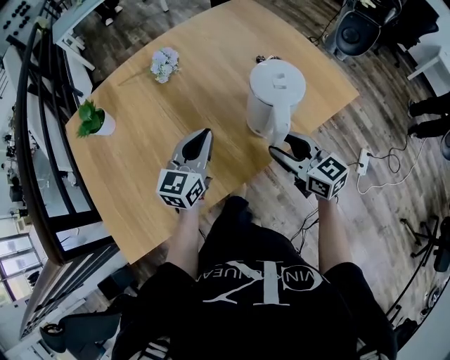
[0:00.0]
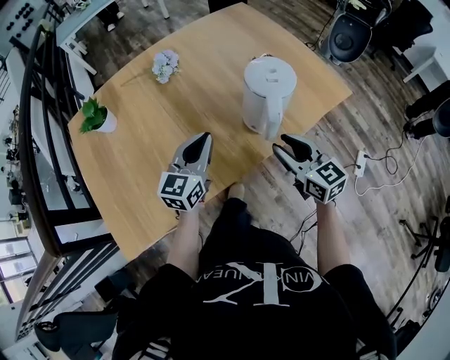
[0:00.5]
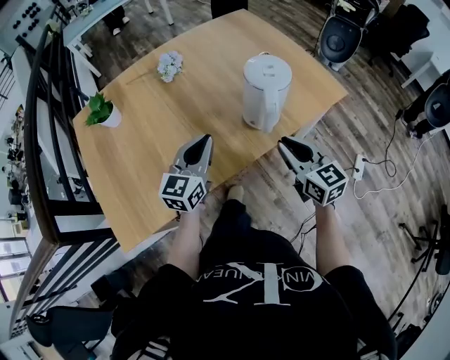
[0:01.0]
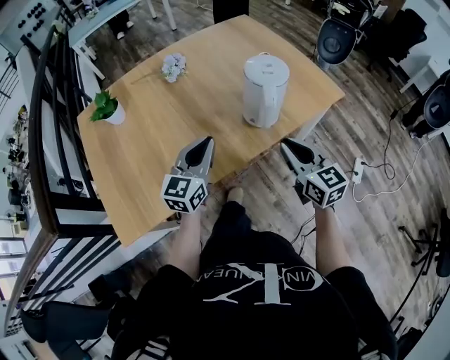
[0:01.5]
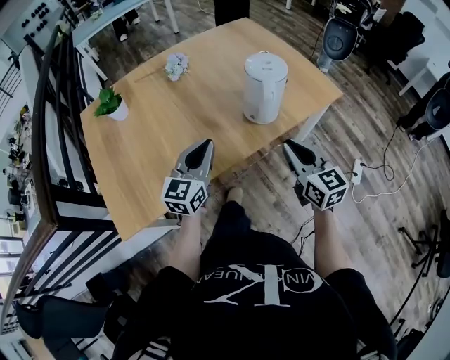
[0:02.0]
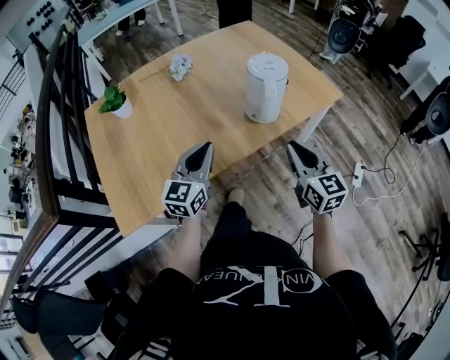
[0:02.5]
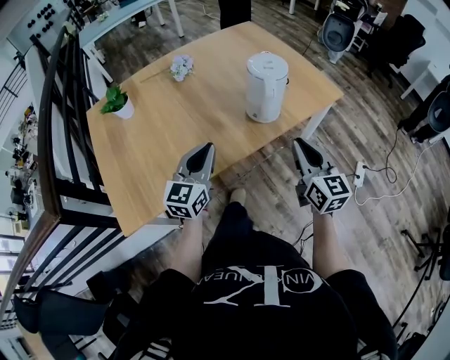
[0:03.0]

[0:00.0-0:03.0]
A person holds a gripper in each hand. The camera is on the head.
0:00.0 to 0:01.5: Both grippers travel together backward, about 10 cm. The right gripper closes up.
0:01.5 to 0:03.0: The right gripper changes place by some 5 cm. Meanwhile the left gripper shifts approximately 5 cm backward.

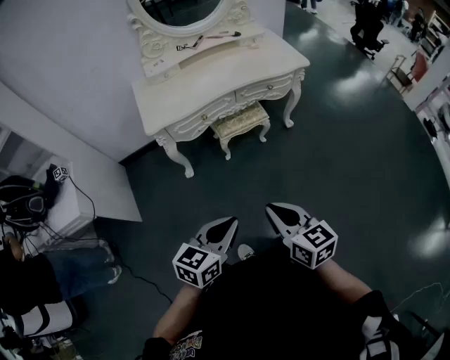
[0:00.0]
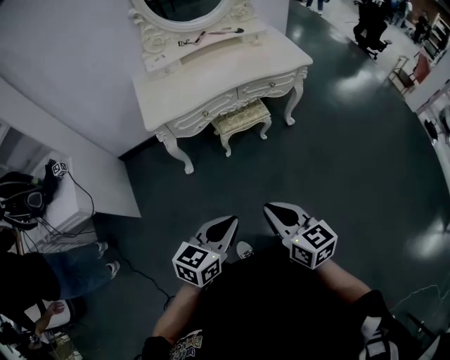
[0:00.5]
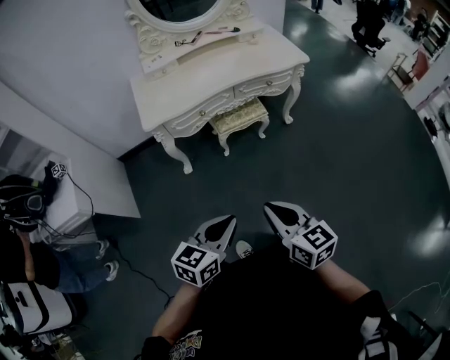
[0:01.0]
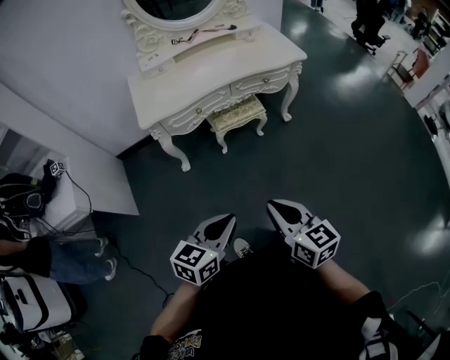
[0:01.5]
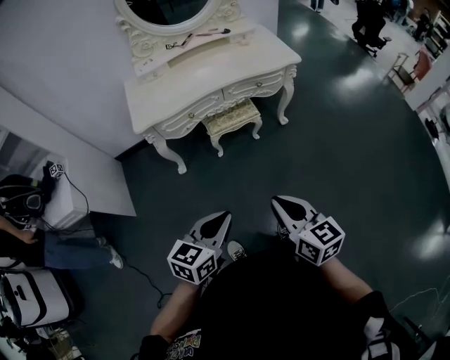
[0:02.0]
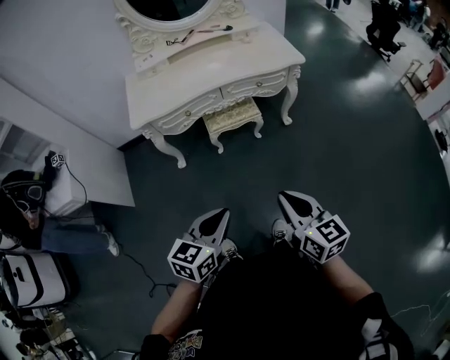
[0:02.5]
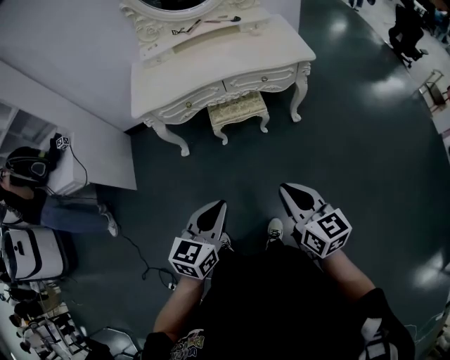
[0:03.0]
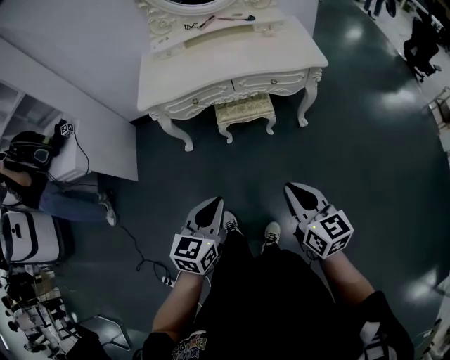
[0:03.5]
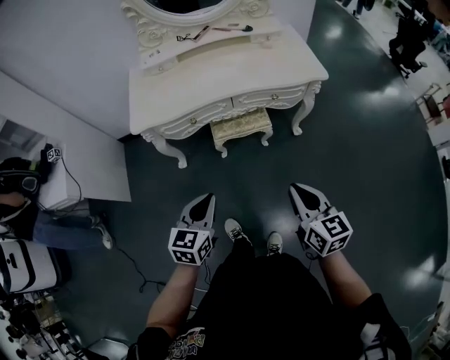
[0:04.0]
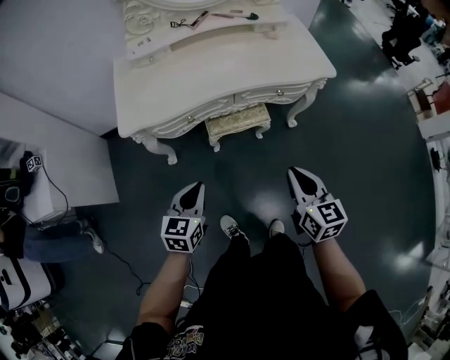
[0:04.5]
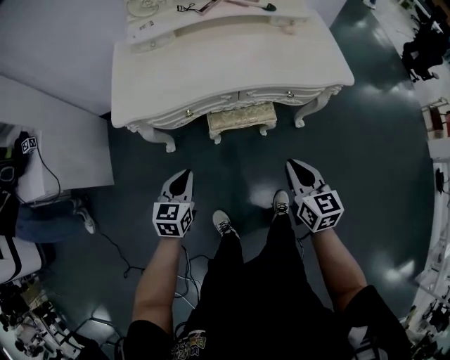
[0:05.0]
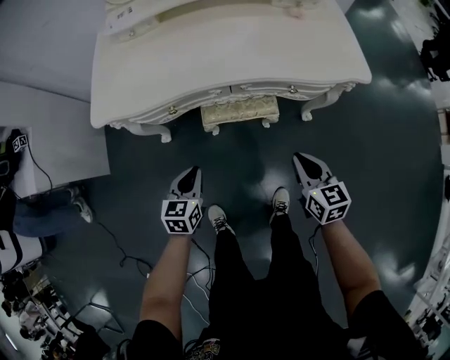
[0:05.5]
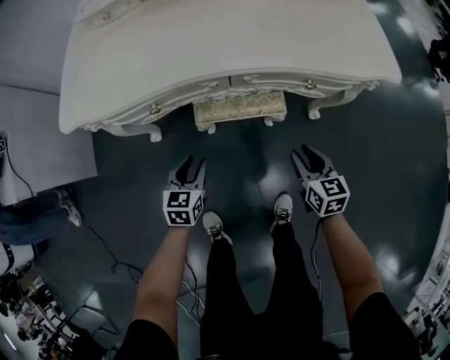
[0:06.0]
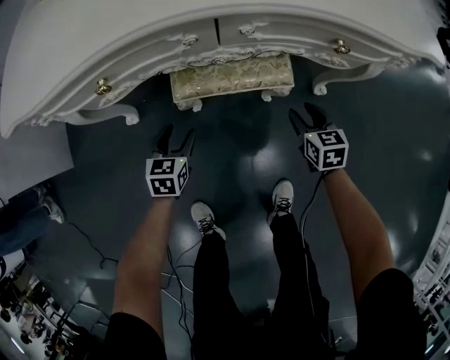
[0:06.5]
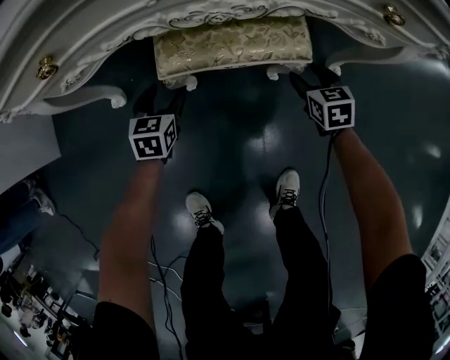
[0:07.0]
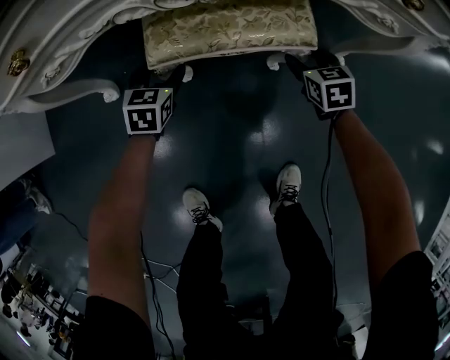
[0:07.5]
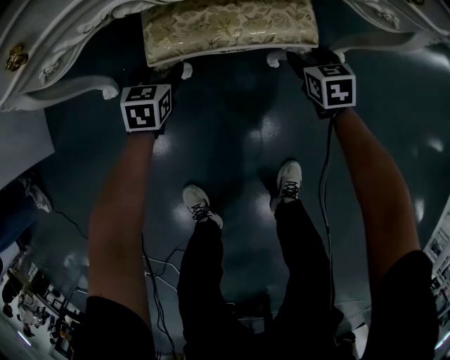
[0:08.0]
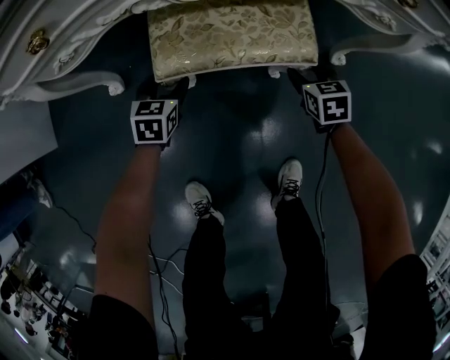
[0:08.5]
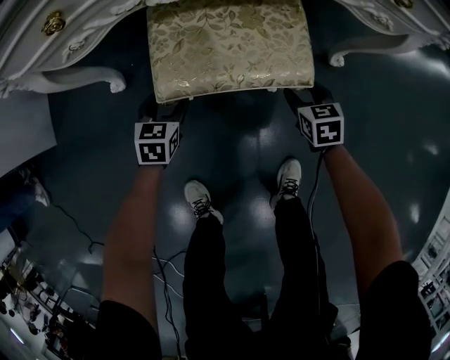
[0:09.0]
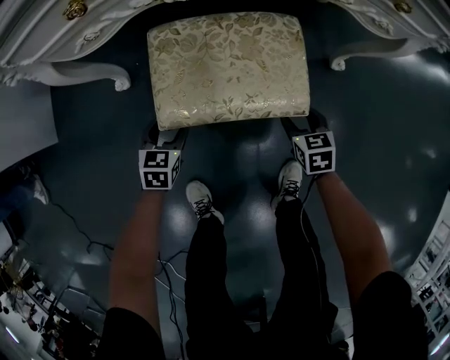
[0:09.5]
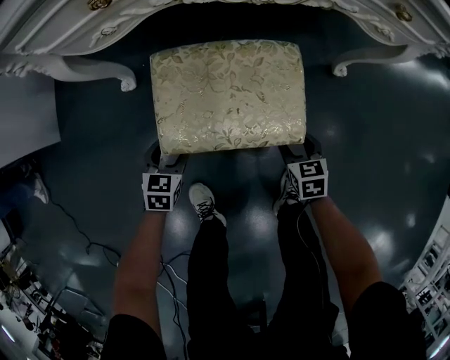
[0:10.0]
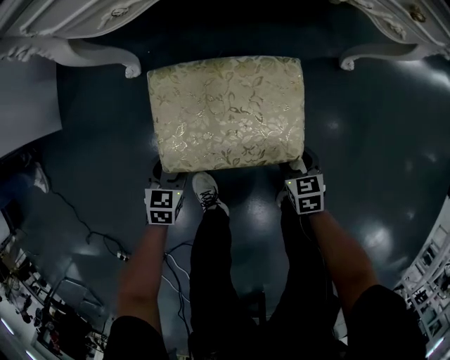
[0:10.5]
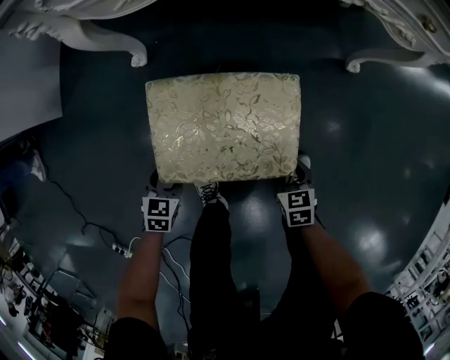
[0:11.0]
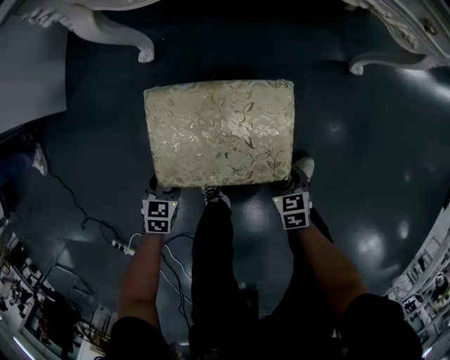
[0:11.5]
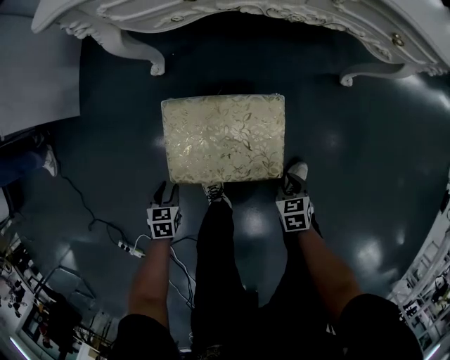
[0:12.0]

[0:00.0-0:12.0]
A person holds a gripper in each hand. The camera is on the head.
0:00.0 to 0:02.0: Both grippers travel together to the right, about 10 cm.
0:02.0 to 0:04.0: The left gripper heads forward, covering some 20 cm, and swivels approximately 20 degrees; the right gripper heads forward and to the right, covering roughly 25 cm.
0:04.0 to 0:06.0: The two grippers go about 50 cm downward and forward. The right gripper opens its fingers. The left gripper opens.
0:06.0 to 0:08.0: The two grippers go approximately 35 cm downward and forward. The left gripper opens. Meanwhile the right gripper opens up.
0:08.0 to 0:10.0: The grippers make only small movements.
0:10.0 to 0:12.0: The right gripper goes approximately 5 cm upward, and closes. Meanwhile the left gripper ends up roughly 5 cm from where it was, turns by approximately 20 degrees, and closes.

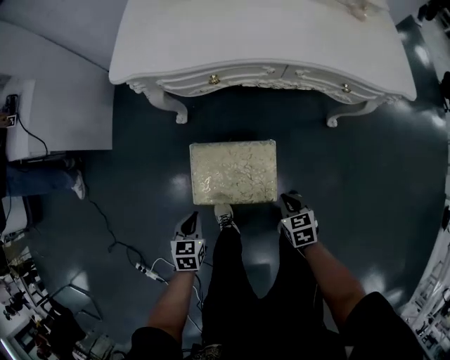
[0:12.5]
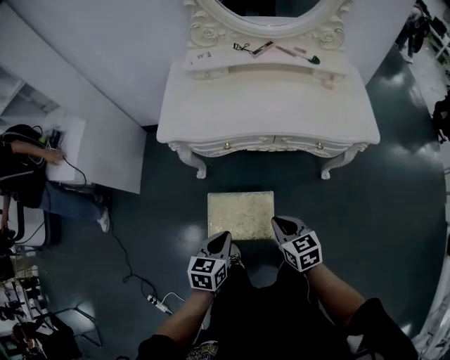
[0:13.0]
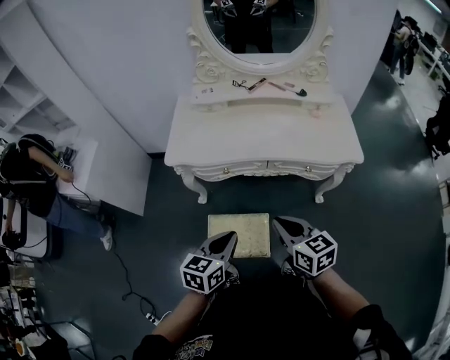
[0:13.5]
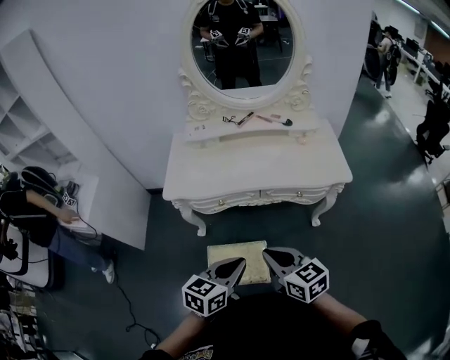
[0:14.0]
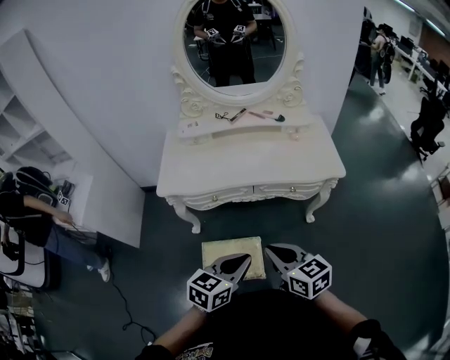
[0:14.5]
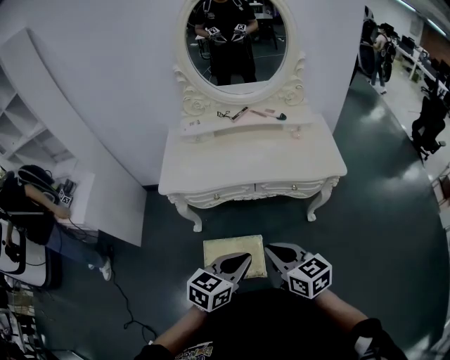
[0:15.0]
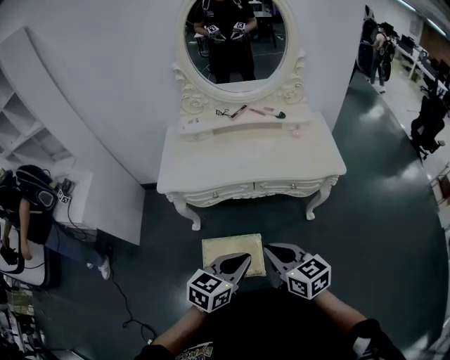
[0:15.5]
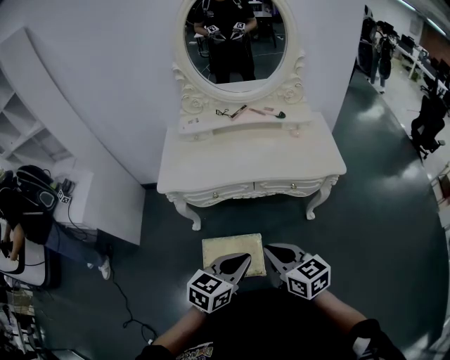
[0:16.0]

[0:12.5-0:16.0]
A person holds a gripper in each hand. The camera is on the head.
0:12.5 to 0:14.5: The left gripper goes some 50 cm upward and to the right, and angles its fingers upward, by approximately 30 degrees. The right gripper moves upward, approximately 50 cm, and tips its fingers upward by roughly 40 degrees.
0:14.5 to 0:16.0: Both grippers stay about where they are.

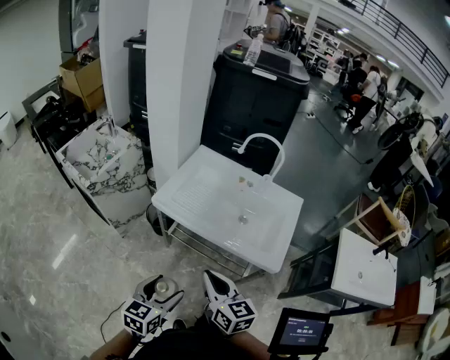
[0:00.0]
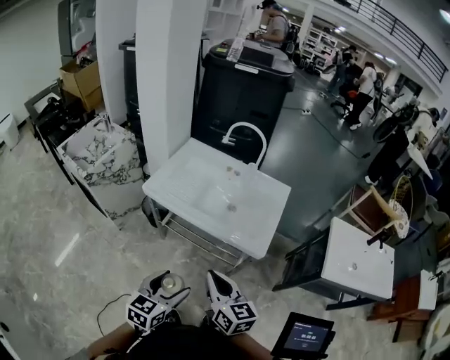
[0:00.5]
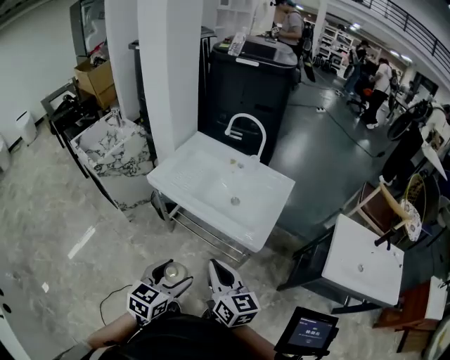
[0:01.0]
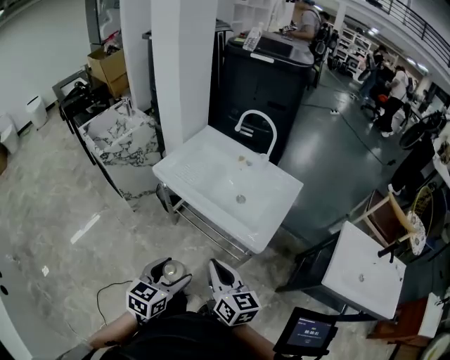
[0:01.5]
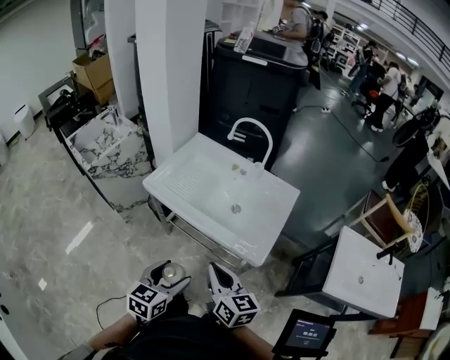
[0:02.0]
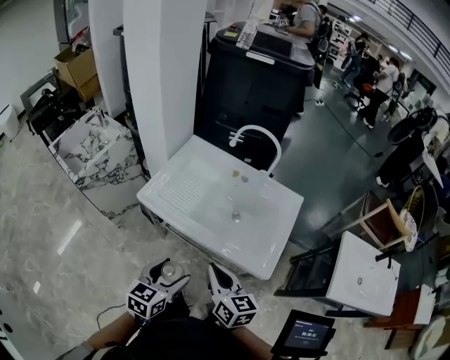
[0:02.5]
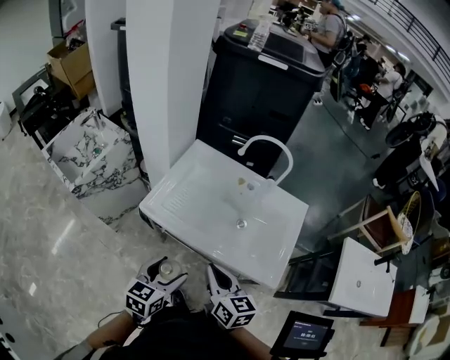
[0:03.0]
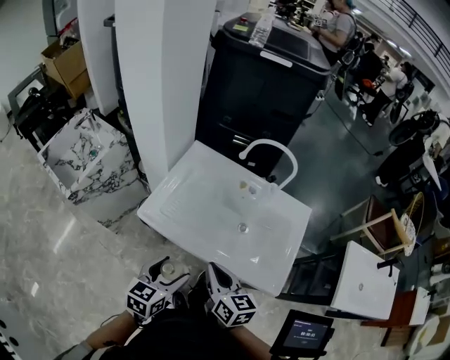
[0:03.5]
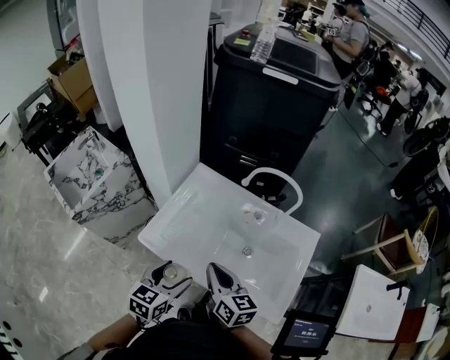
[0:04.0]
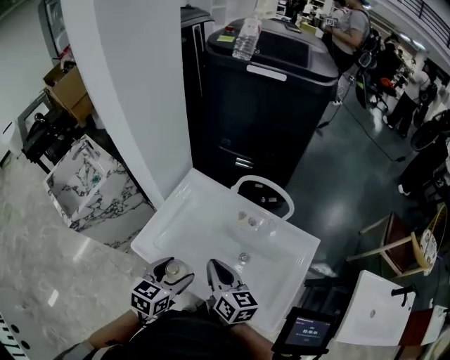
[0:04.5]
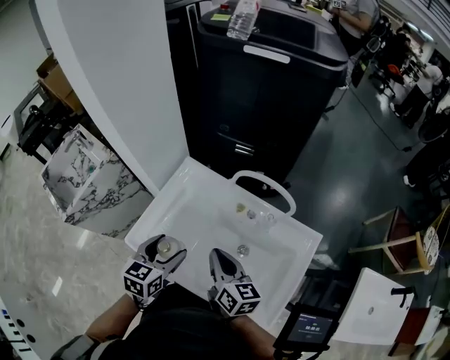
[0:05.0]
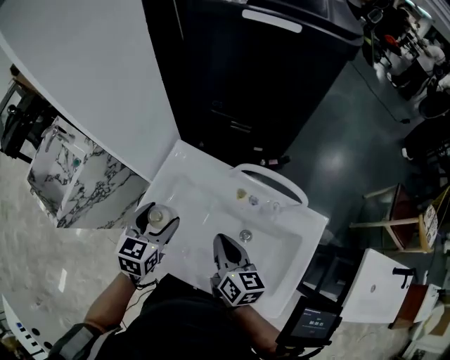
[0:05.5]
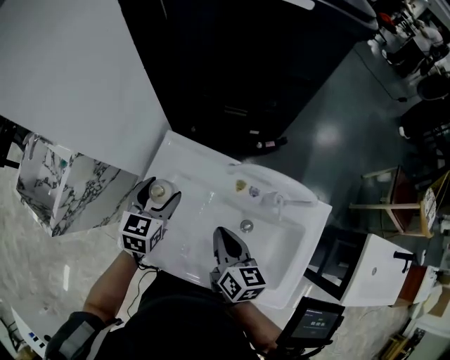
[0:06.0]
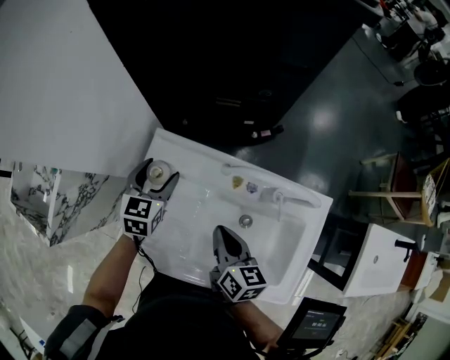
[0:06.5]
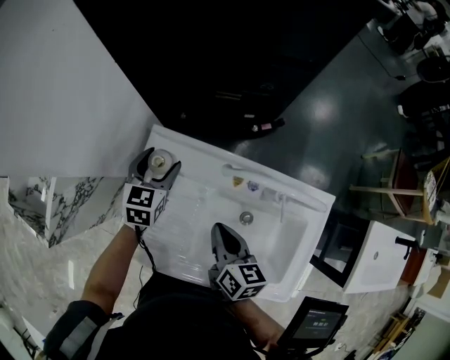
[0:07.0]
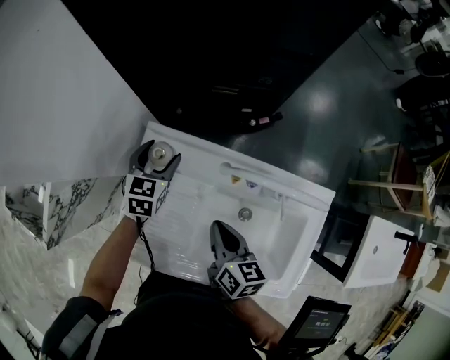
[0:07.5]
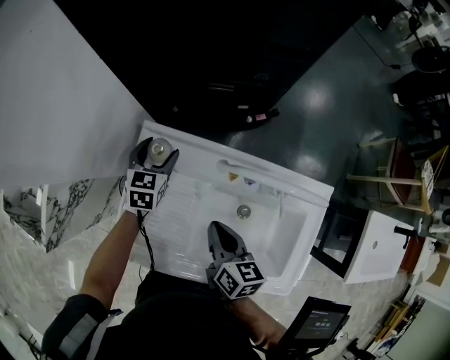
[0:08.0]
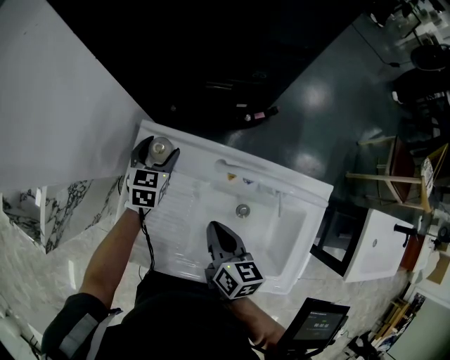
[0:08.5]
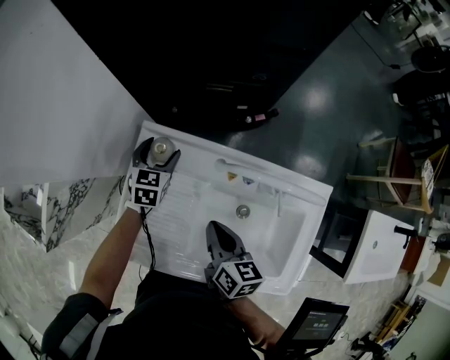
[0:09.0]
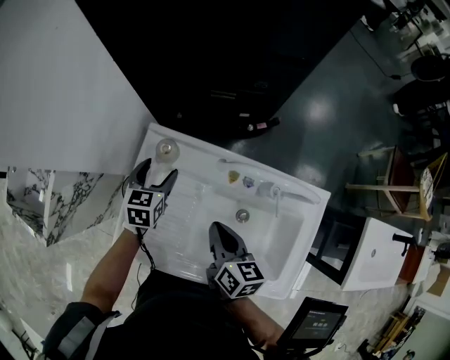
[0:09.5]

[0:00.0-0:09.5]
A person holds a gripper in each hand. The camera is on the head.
0:00.0 to 0:02.0: Both grippers travel together to the right, about 15 cm.
0:02.0 to 0:04.0: The grippers both shift forward by approximately 30 cm.
0:04.0 to 0:05.5: The right gripper moves forward and to the right, roughly 15 cm, while the left gripper is displaced forward by roughly 25 cm.
0:05.5 to 0:07.5: The right gripper travels downward by roughly 5 cm. The left gripper is displaced forward and downward by some 20 cm.
0:07.5 to 0:09.5: The left gripper is displaced backward by some 5 cm.
